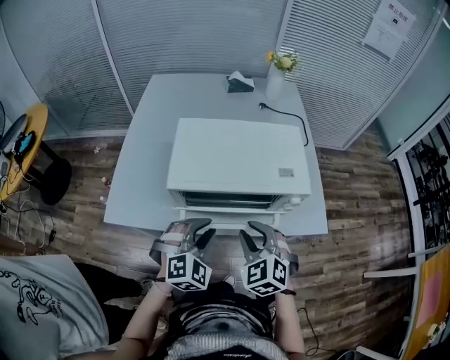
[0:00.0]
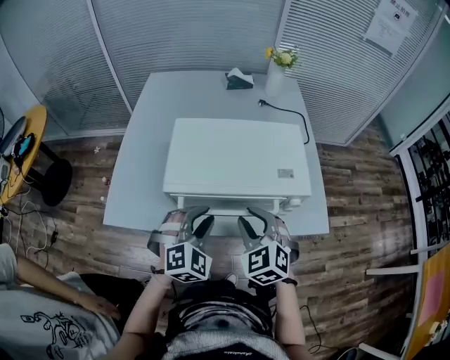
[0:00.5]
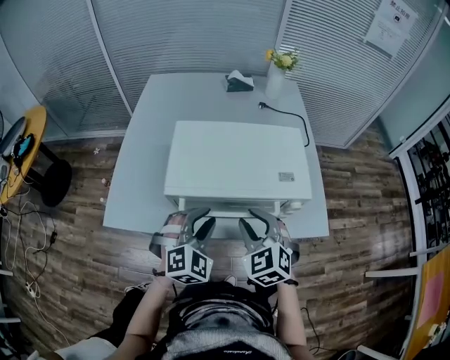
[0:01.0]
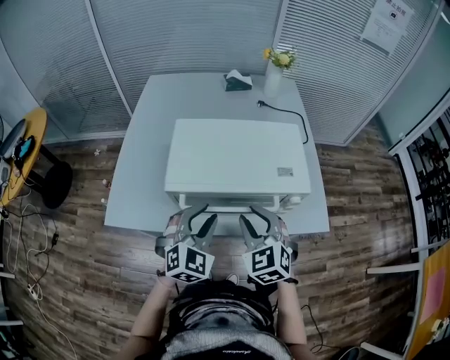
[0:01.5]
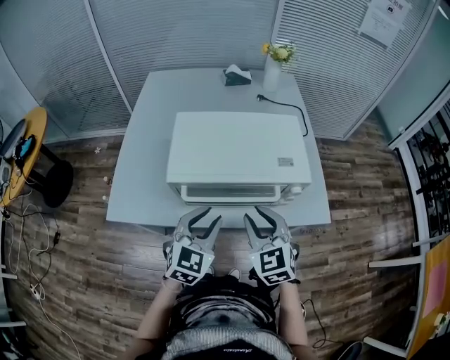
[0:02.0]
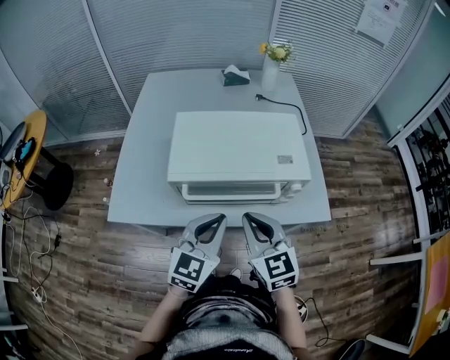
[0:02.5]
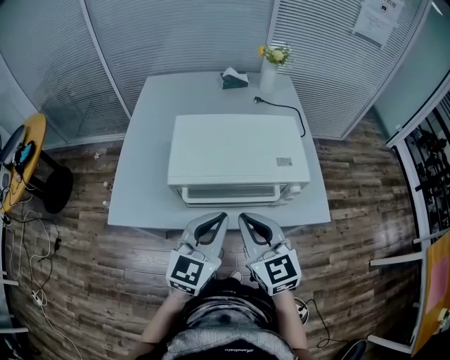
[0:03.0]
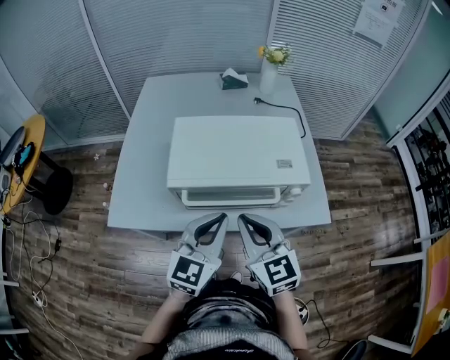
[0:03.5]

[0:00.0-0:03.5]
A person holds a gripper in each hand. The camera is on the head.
0:00.0 to 0:02.0: The left gripper changes its angle by roughly 30 degrees.
0:02.0 to 0:03.5: Both grippers move upward, some 5 cm. The right gripper closes; the left gripper closes.

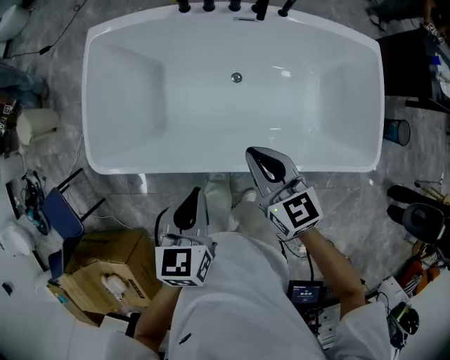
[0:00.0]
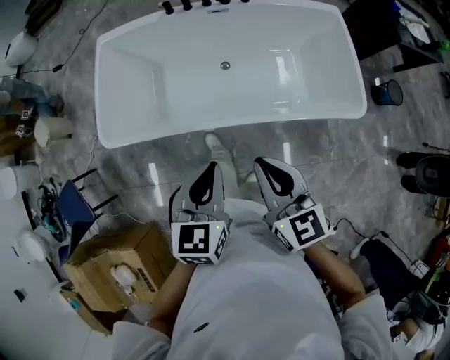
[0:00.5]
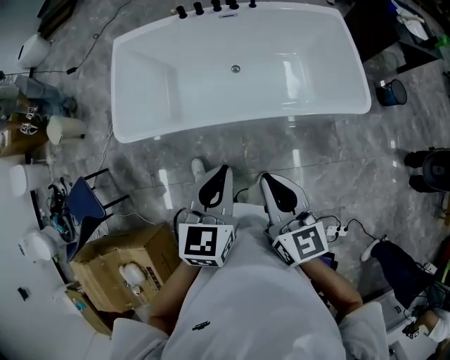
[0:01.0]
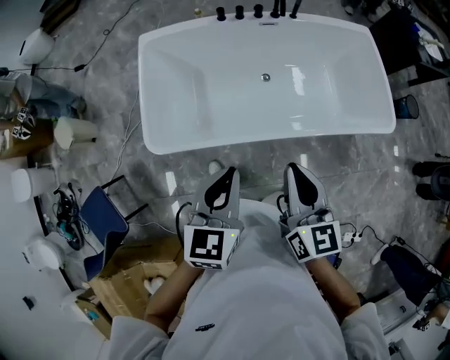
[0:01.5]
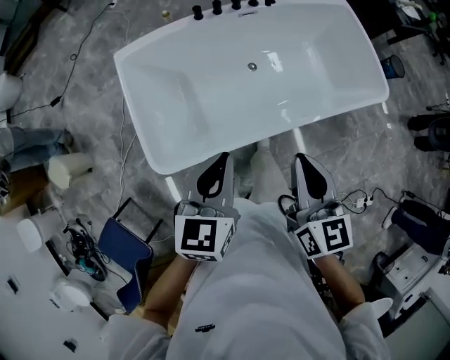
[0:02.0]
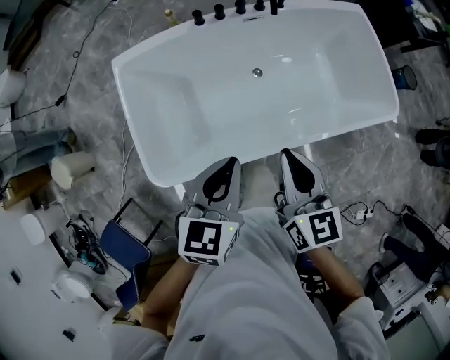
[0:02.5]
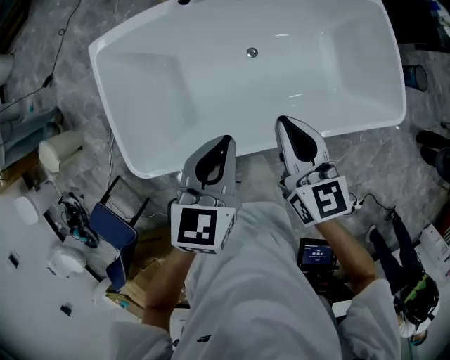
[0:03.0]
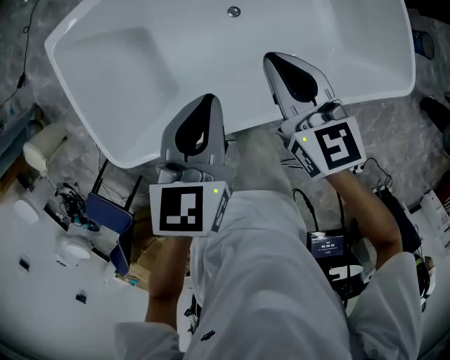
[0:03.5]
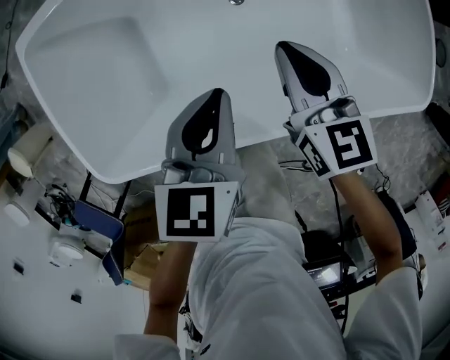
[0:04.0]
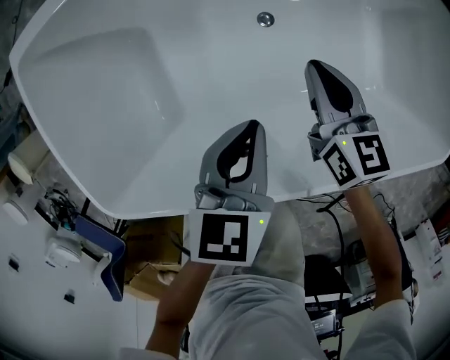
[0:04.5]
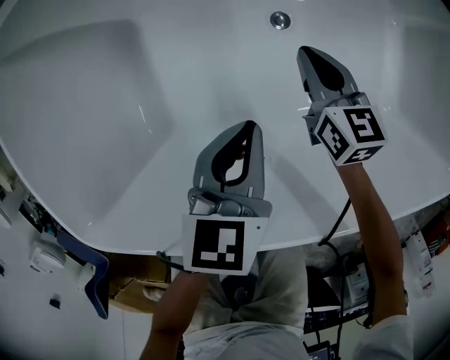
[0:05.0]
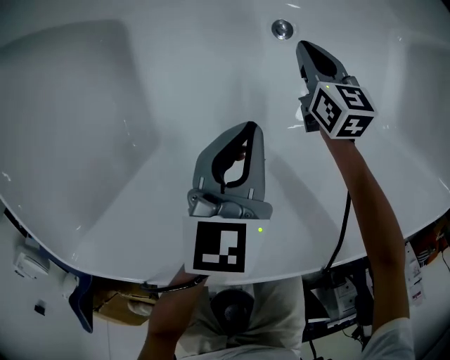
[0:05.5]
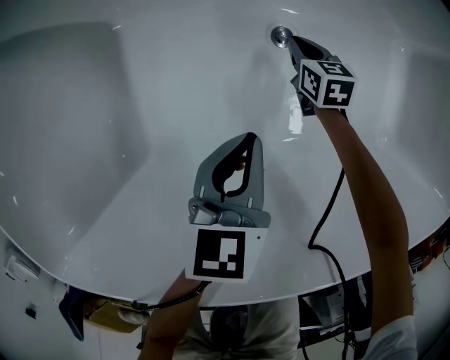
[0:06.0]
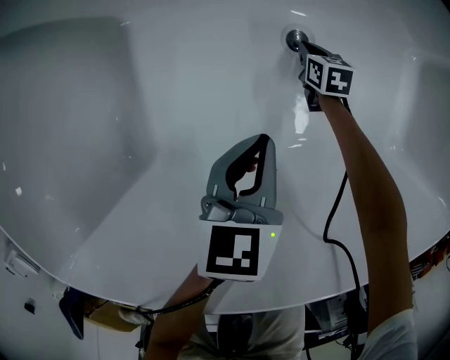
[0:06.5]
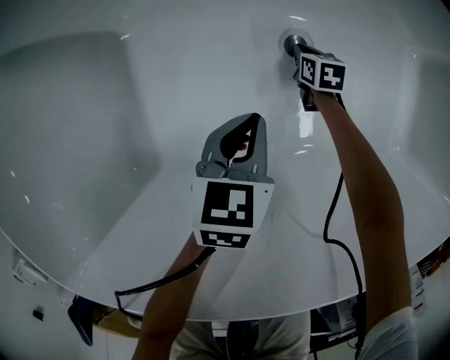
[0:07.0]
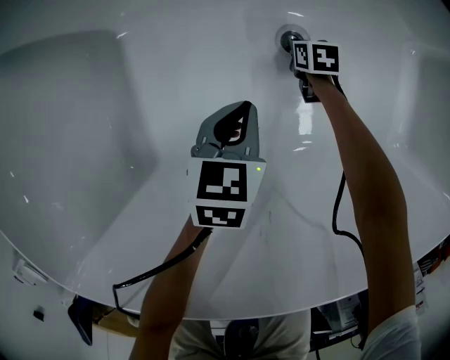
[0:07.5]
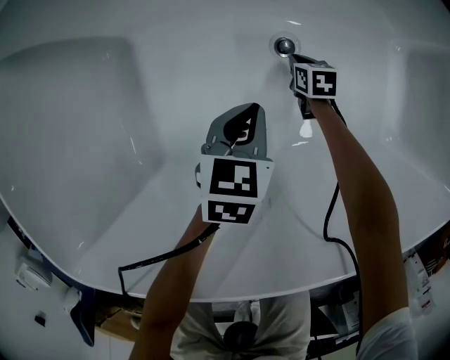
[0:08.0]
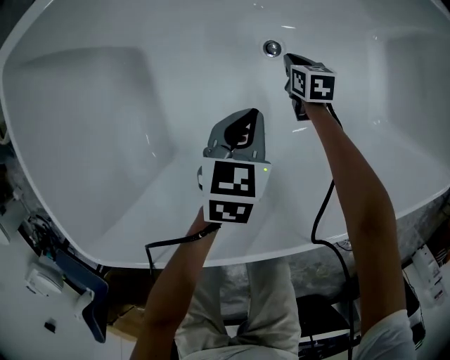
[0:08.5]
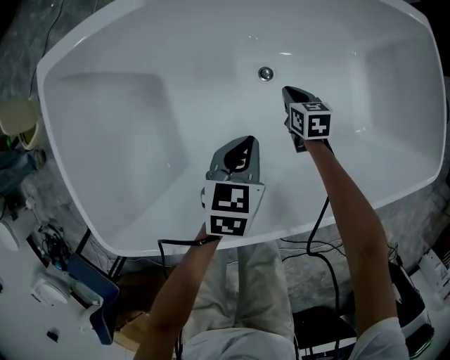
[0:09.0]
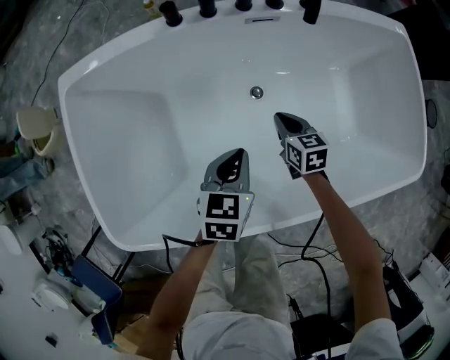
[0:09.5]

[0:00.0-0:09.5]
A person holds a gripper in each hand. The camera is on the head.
0:00.0 to 0:02.0: The left gripper ends up some 20 cm from where it was, and rotates about 30 degrees; the right gripper moves about 30 cm, and rotates about 40 degrees.
0:02.0 to 0:04.0: The right gripper moves forward and downward, roughly 40 cm, and swivels about 20 degrees. Meanwhile the left gripper heads downward, forward and to the right, covering approximately 40 cm.
0:04.0 to 0:05.5: The two grippers go about 40 cm downward.
0:05.5 to 0:07.5: The right gripper heads downward, covering some 20 cm, and swivels about 30 degrees. Meanwhile the left gripper goes roughly 10 cm downward.
0:07.5 to 0:09.5: Both grippers move upward, roughly 35 cm. The right gripper rotates about 20 degrees.

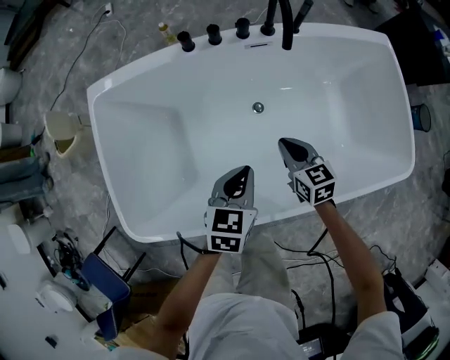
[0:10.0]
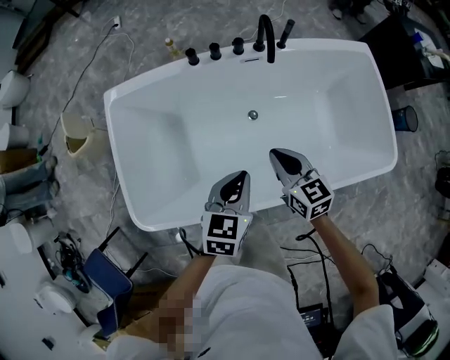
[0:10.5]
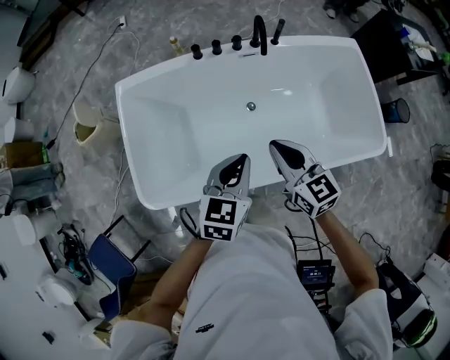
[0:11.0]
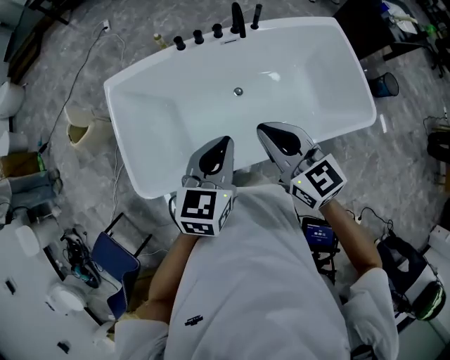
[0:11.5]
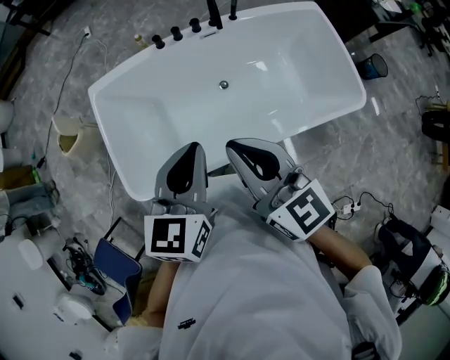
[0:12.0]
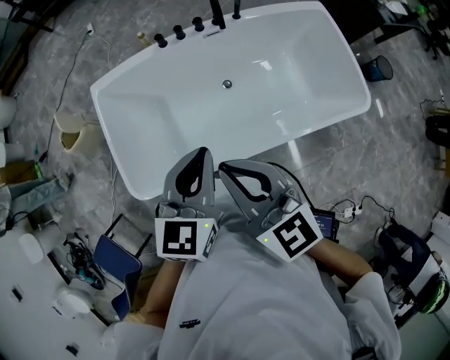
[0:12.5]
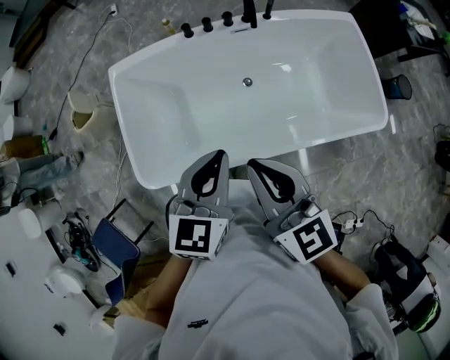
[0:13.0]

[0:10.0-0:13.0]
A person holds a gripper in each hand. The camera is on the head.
0:10.0 to 0:11.5: The left gripper heads upward, covering roughly 30 cm. The right gripper travels upward and backward by about 40 cm, and rotates about 20 degrees.
0:11.5 to 0:13.0: The right gripper moves backward, about 5 cm.

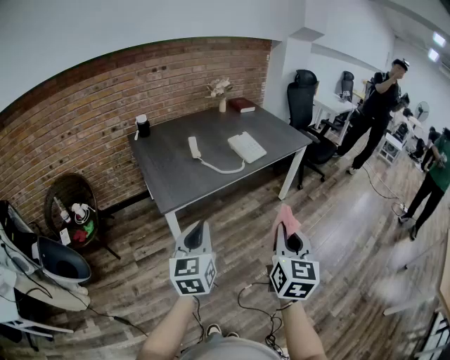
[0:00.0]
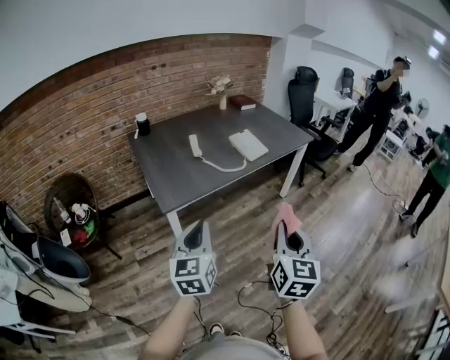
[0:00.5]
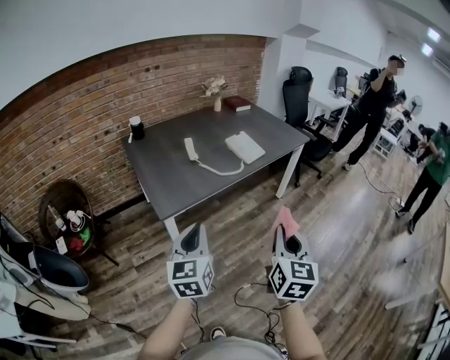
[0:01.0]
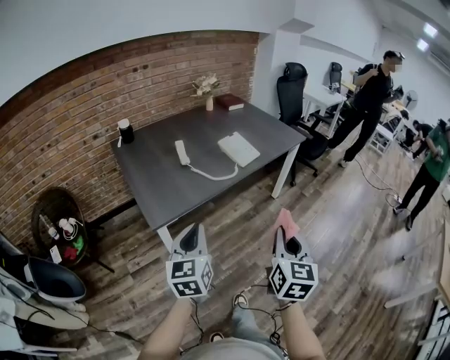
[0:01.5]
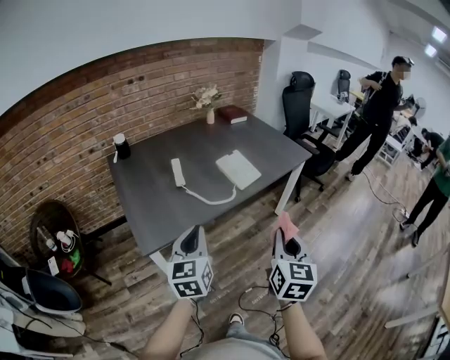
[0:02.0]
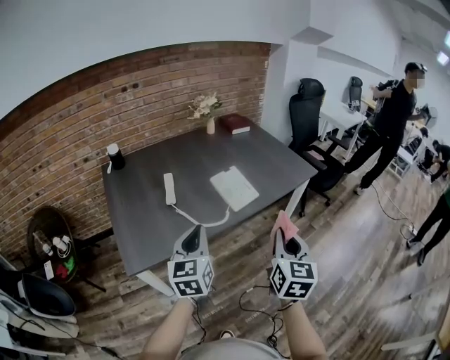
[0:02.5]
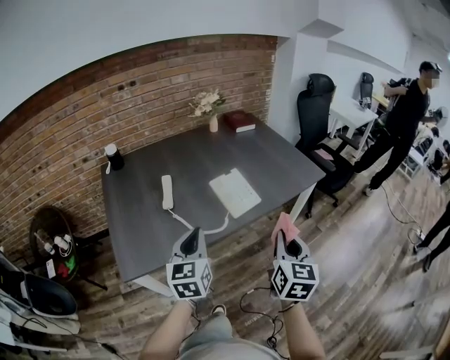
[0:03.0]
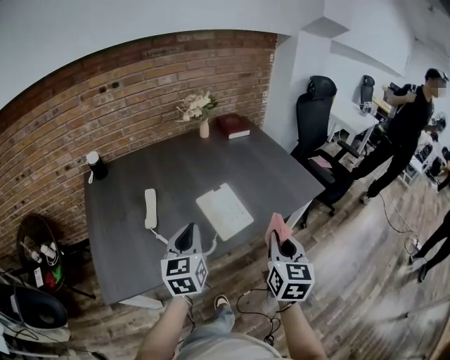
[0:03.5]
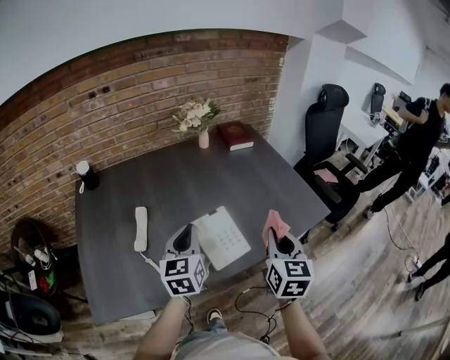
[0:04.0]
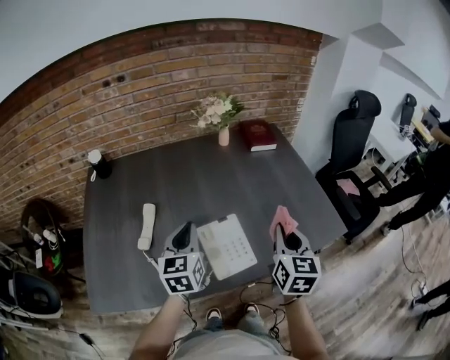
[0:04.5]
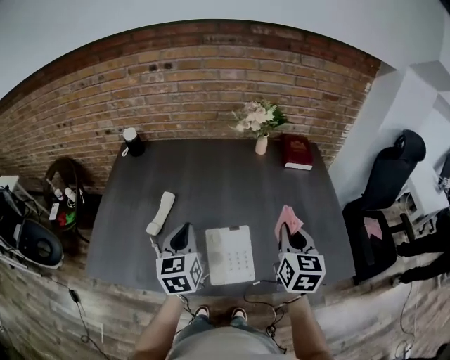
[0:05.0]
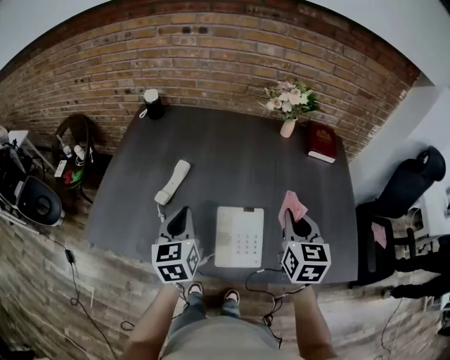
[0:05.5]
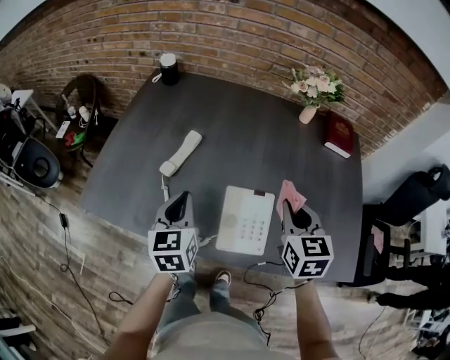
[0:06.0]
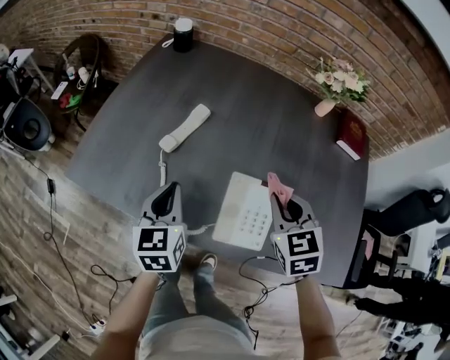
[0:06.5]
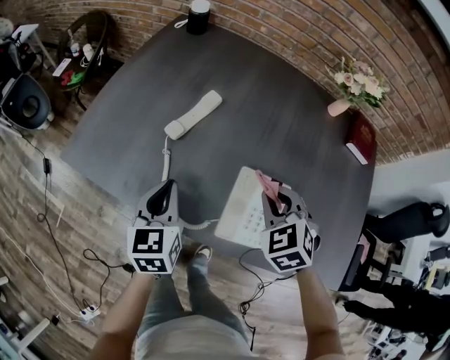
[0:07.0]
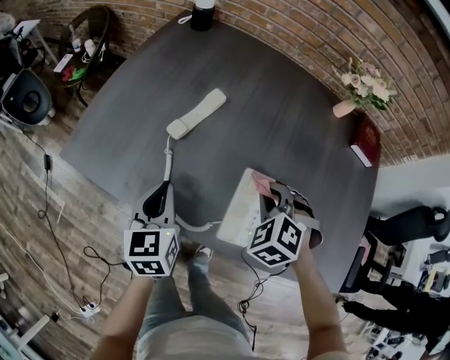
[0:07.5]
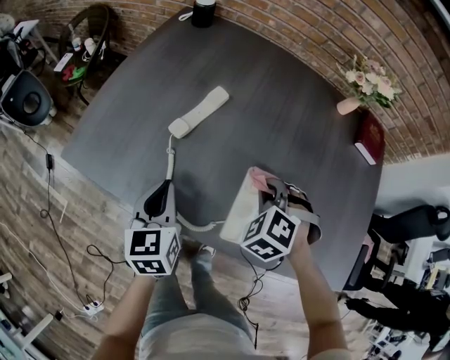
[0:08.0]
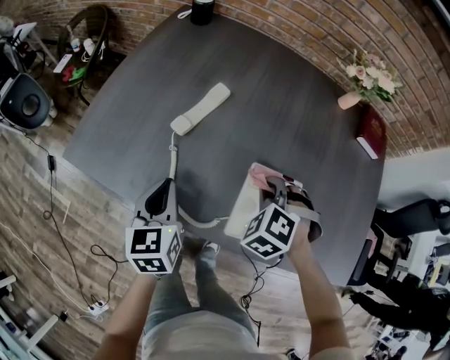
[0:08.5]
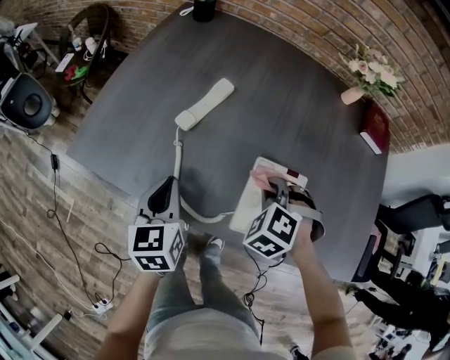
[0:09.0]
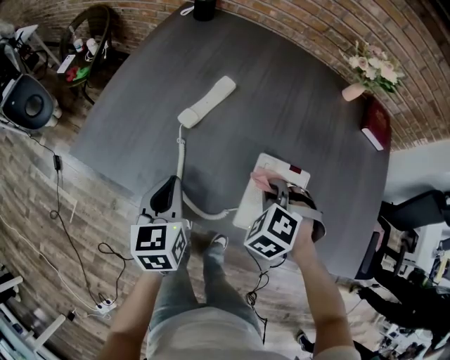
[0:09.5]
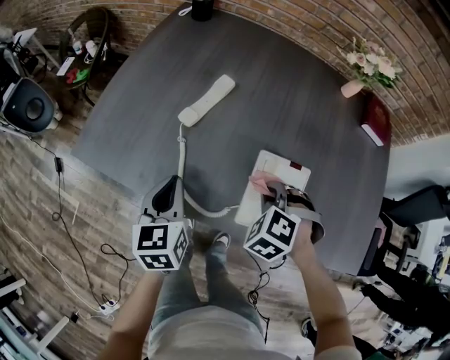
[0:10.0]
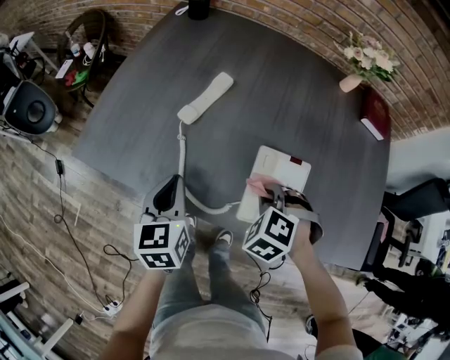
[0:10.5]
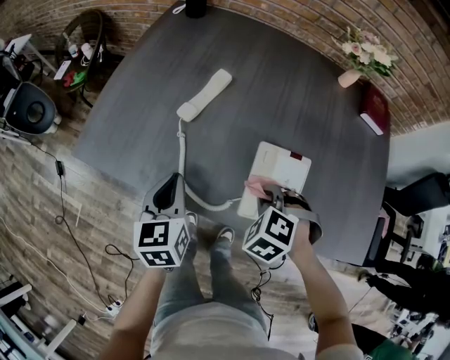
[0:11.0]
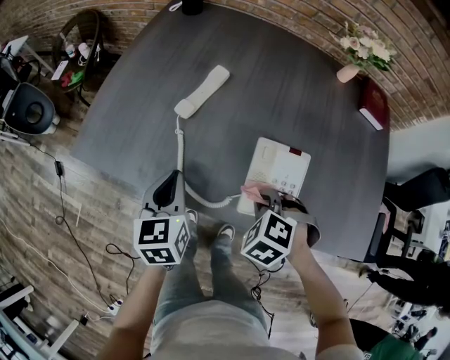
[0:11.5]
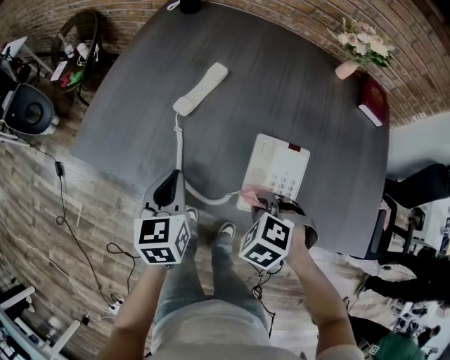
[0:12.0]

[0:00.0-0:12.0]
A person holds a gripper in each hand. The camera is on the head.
0:00.0 to 0:02.0: The two grippers go roughly 20 cm forward.
0:02.0 to 0:04.0: Both grippers are carried forward, about 50 cm.
0:04.0 to 0:06.0: The left gripper shifts by about 10 cm, and turns by approximately 40 degrees, while the right gripper ends up roughly 20 cm from where it was, and swivels roughly 50 degrees.
0:06.0 to 0:08.0: The left gripper heads downward and to the left, covering approximately 10 cm. Meanwhile the right gripper shifts approximately 20 cm downward and to the left, and rotates around the line of its fingers by about 60 degrees, counterclockwise from behind.
0:08.0 to 0:10.0: The right gripper is displaced backward by some 5 cm.
0:10.0 to 0:12.0: The right gripper travels backward by some 10 cm.
